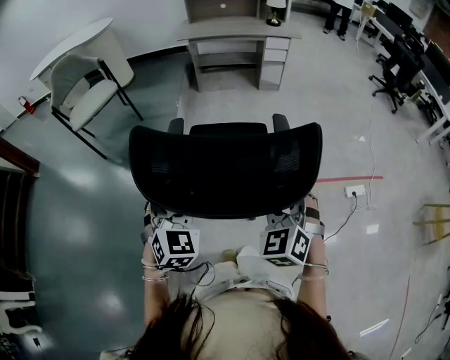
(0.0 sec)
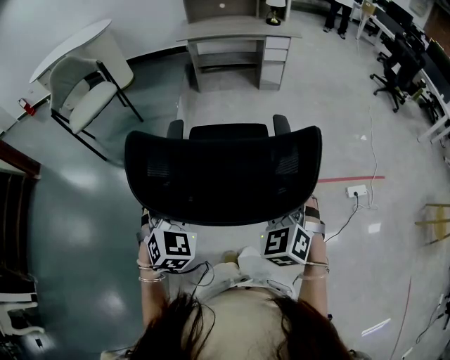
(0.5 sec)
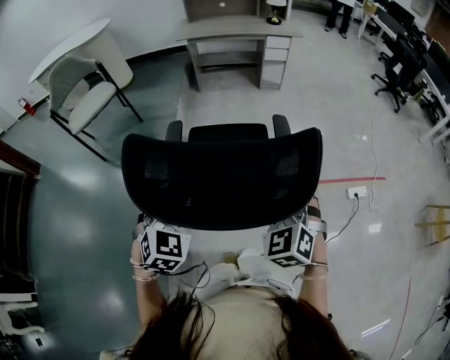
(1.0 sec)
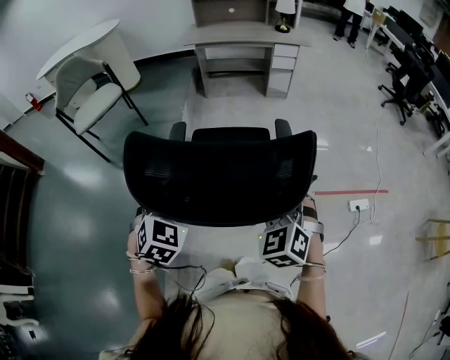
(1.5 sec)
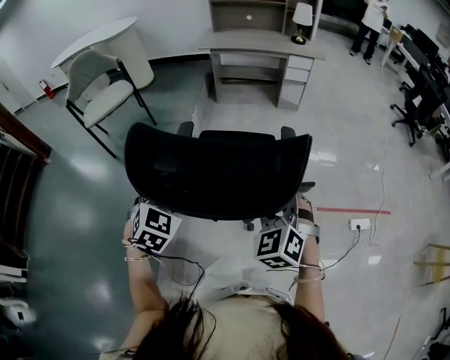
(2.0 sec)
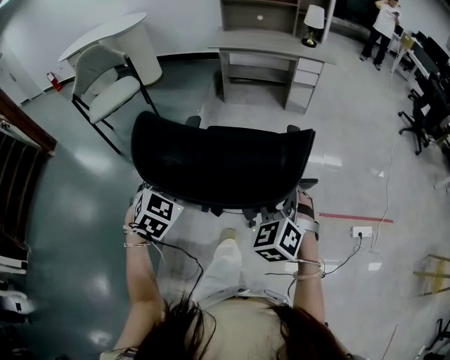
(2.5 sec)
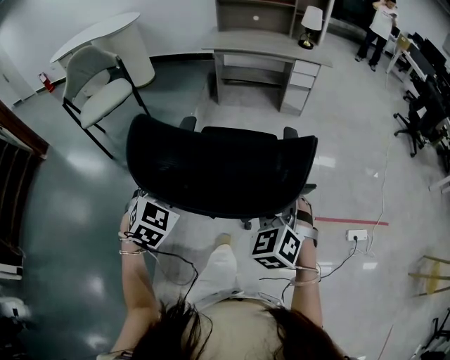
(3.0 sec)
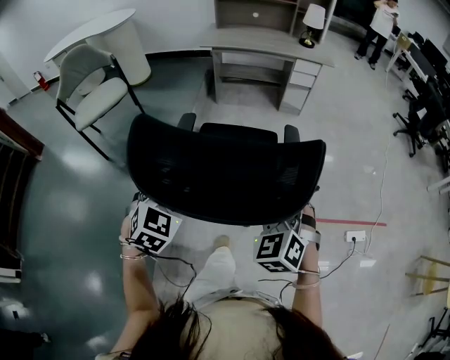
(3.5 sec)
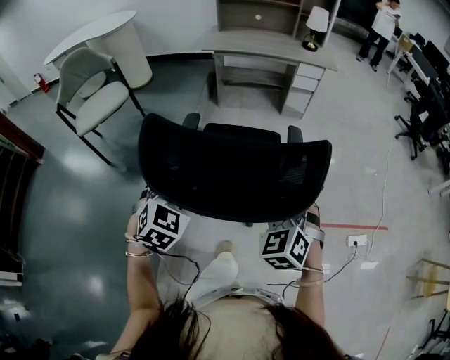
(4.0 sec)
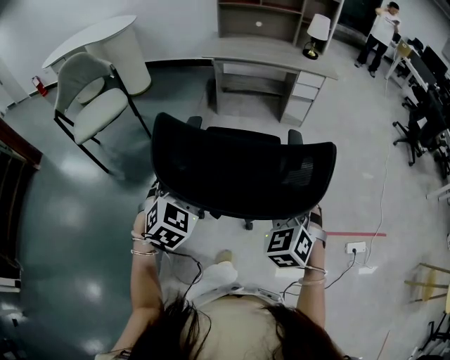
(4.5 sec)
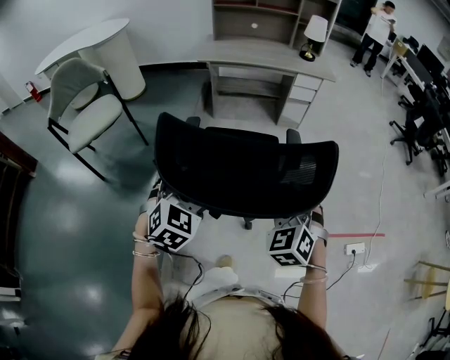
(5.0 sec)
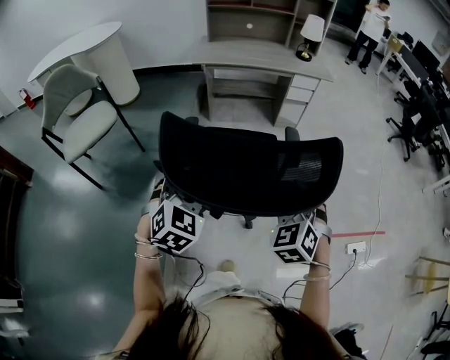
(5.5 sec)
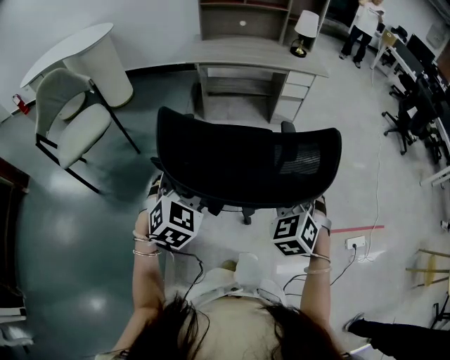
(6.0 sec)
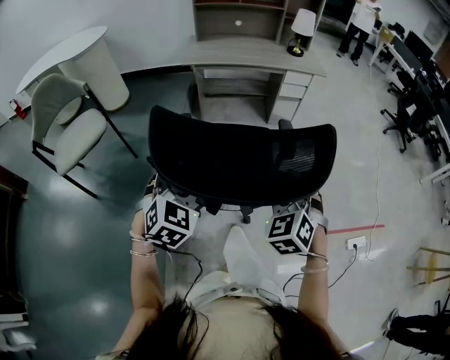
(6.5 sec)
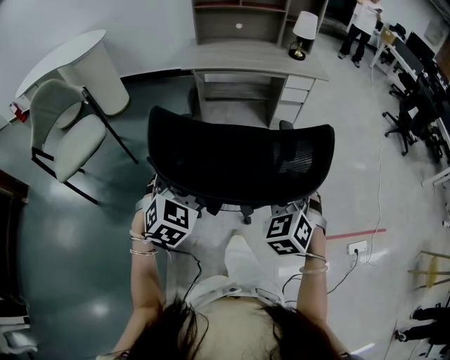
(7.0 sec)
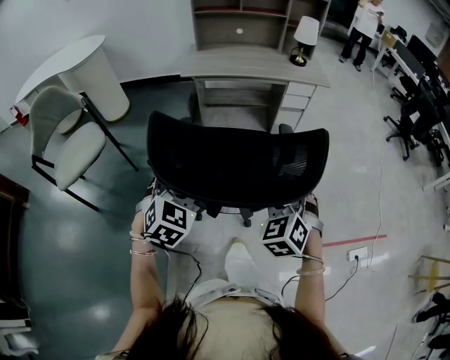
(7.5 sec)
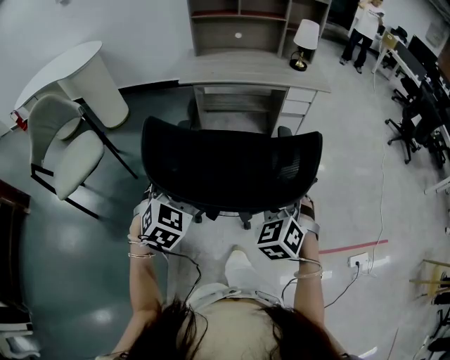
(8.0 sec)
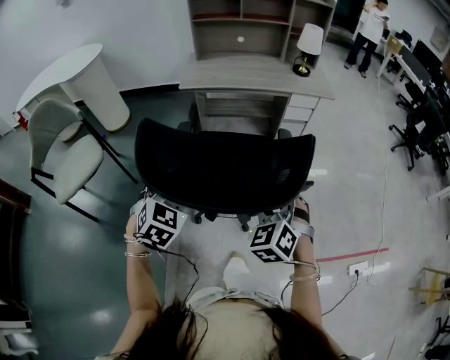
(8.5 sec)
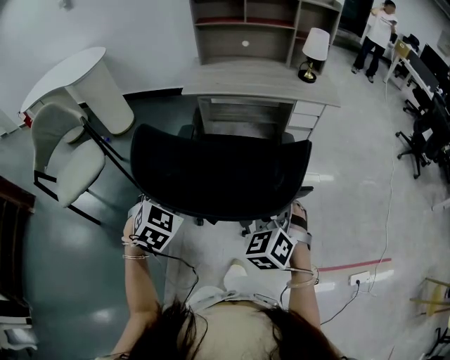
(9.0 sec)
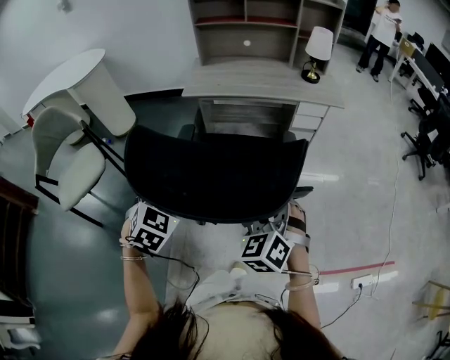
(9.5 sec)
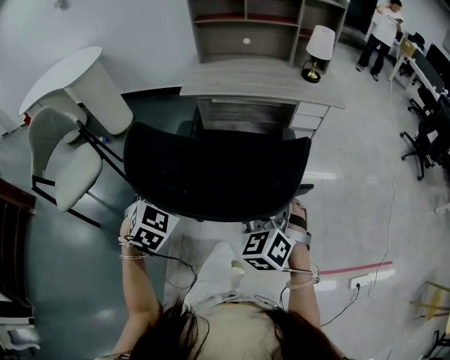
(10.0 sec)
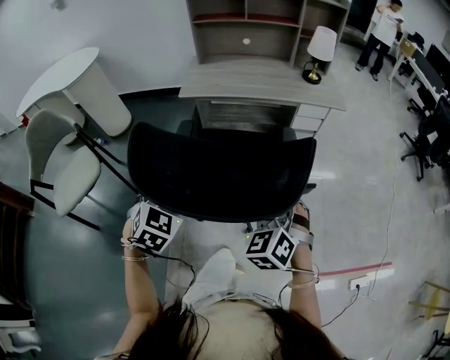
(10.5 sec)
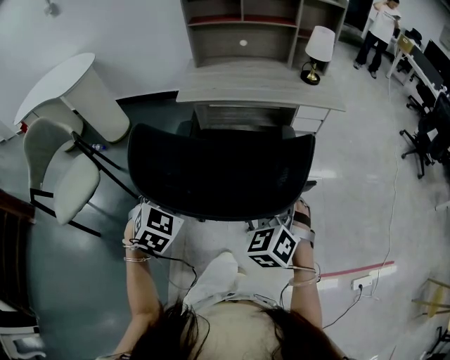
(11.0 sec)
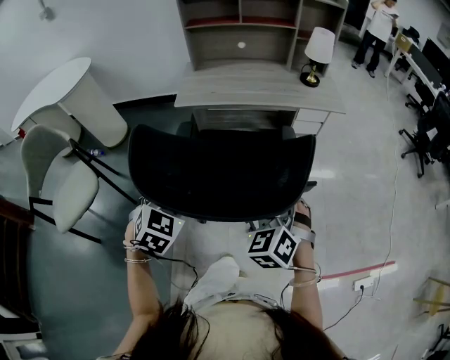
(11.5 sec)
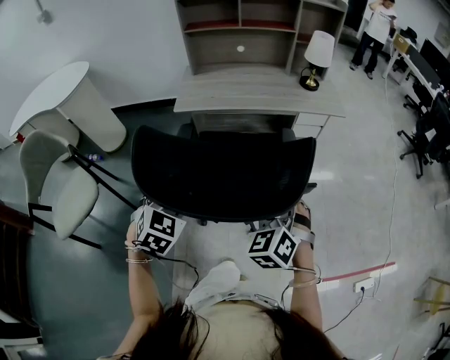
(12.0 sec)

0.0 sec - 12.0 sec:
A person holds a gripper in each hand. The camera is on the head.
0.0 sec - 2.0 sec: Both grippers travel together forward, roughly 10 cm.
2.0 sec - 4.0 sec: Both grippers travel together forward, roughly 15 cm.
4.0 sec - 6.0 sec: Both grippers move forward, approximately 15 cm.
6.0 sec - 8.0 sec: The two grippers go some 15 cm forward.
8.0 sec - 10.0 sec: The two grippers go roughly 10 cm forward.
10.0 sec - 12.0 sec: The grippers both shift forward by roughly 10 cm.

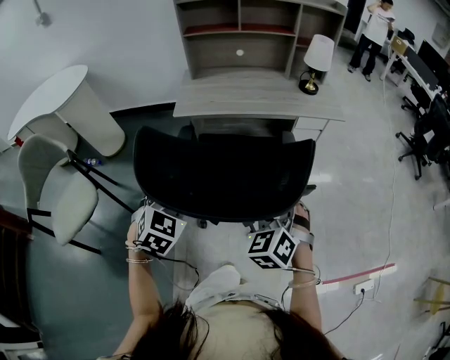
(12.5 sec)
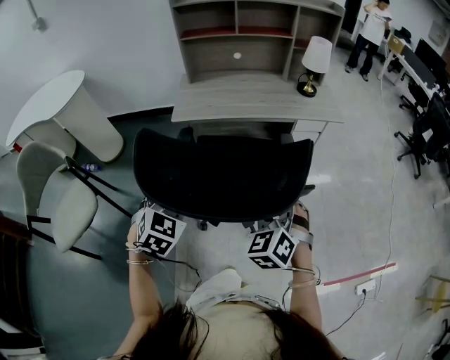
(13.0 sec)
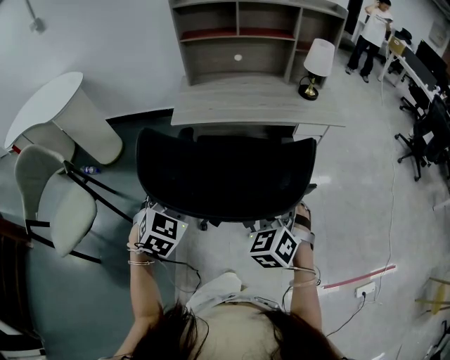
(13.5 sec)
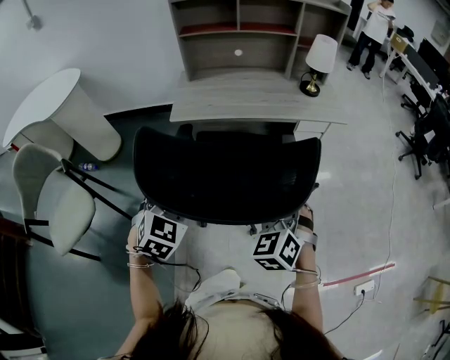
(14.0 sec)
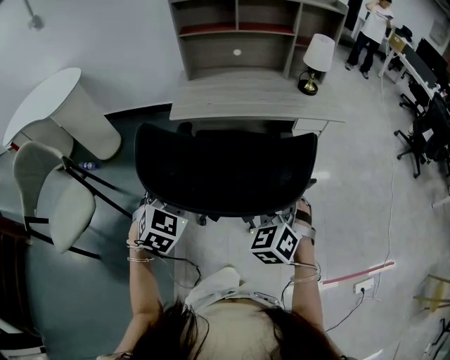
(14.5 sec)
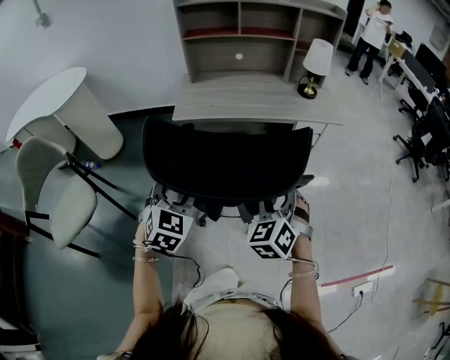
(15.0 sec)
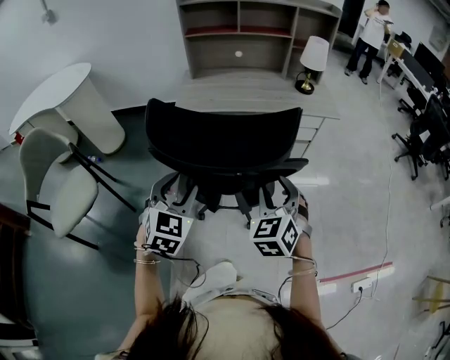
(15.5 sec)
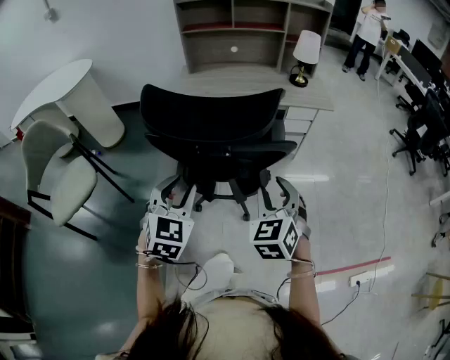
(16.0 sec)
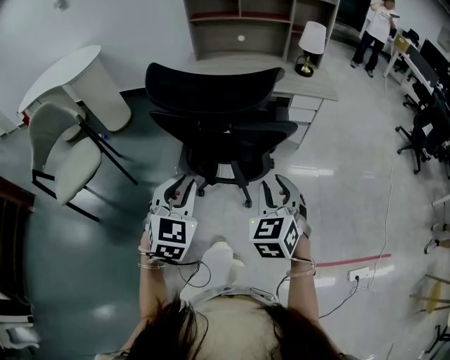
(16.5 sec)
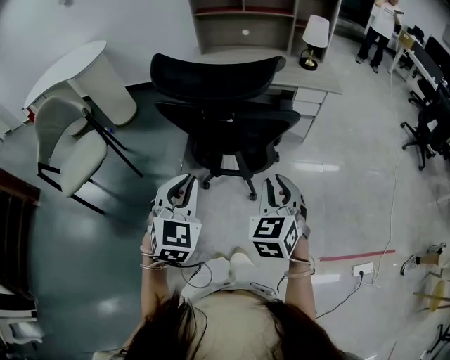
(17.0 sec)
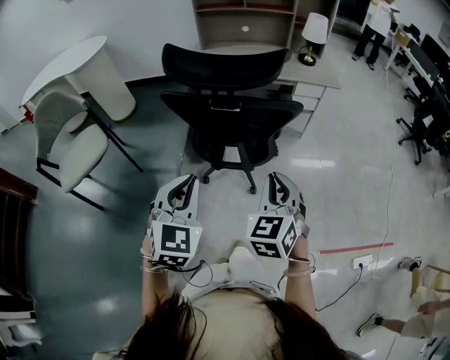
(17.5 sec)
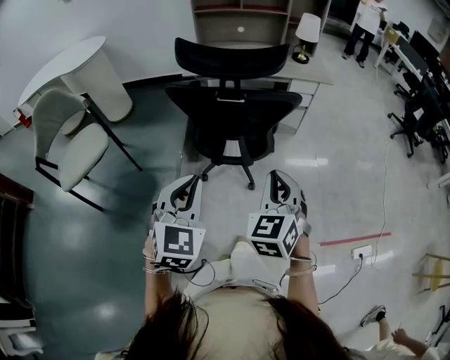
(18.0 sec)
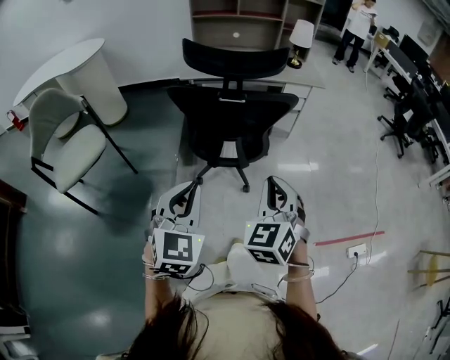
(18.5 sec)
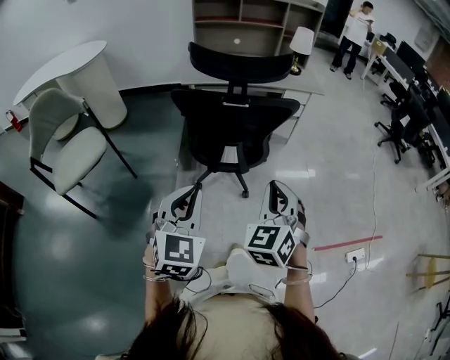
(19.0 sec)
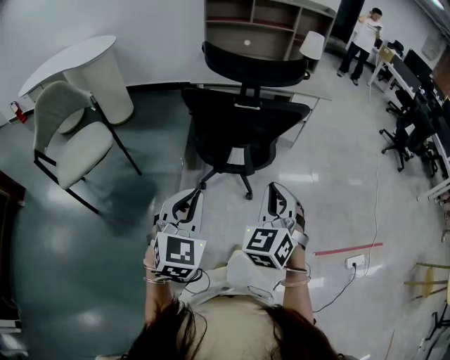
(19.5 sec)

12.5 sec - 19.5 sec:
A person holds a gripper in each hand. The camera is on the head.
12.5 sec - 14.5 sec: There are only small adjustments of the grippers.
14.5 sec - 16.0 sec: The left gripper shifts some 15 cm backward and to the right, while the right gripper heads backward, covering approximately 10 cm.
16.0 sec - 17.5 sec: Both grippers move backward, approximately 15 cm. The left gripper closes. The right gripper closes its fingers.
17.5 sec - 19.5 sec: Both grippers travel together backward and to the left, approximately 10 cm.

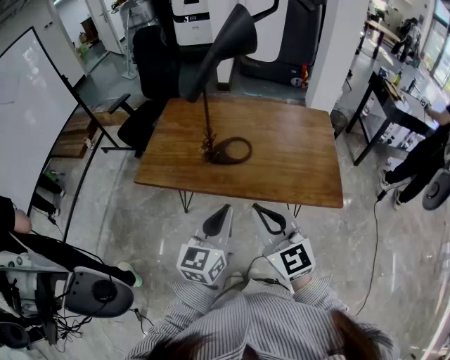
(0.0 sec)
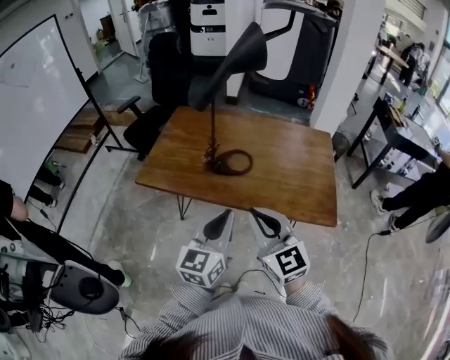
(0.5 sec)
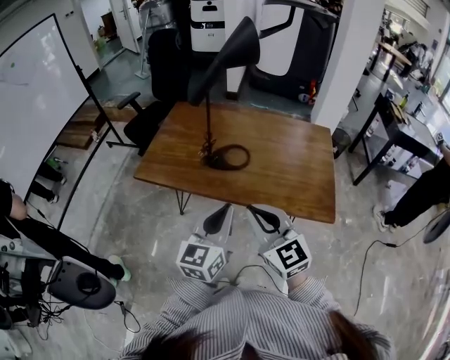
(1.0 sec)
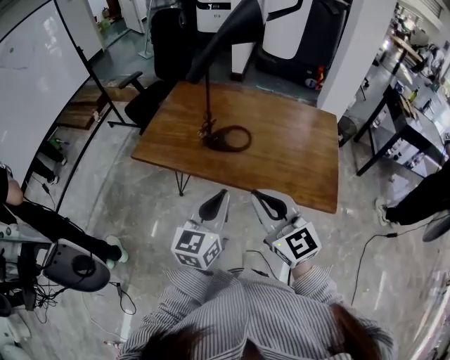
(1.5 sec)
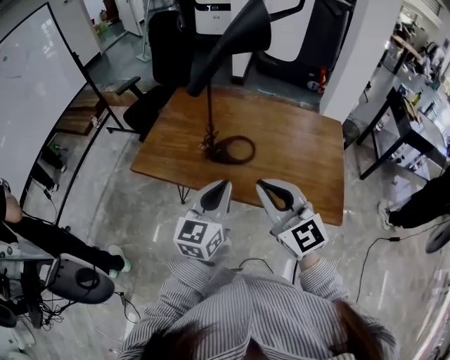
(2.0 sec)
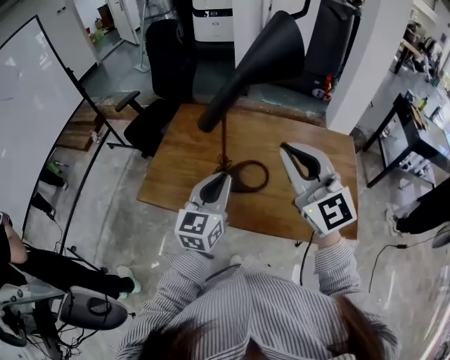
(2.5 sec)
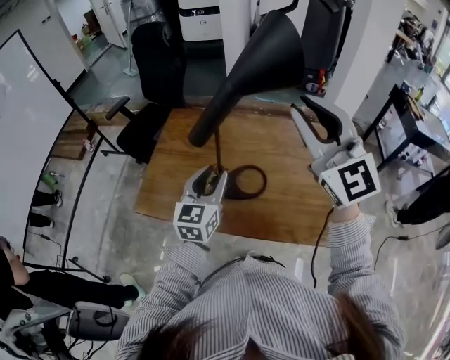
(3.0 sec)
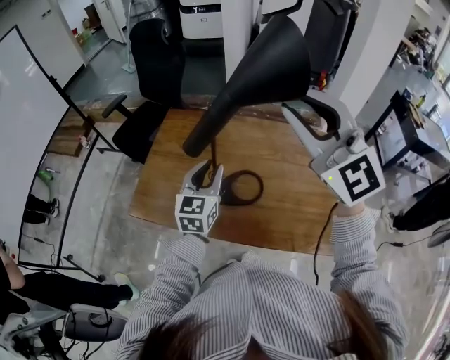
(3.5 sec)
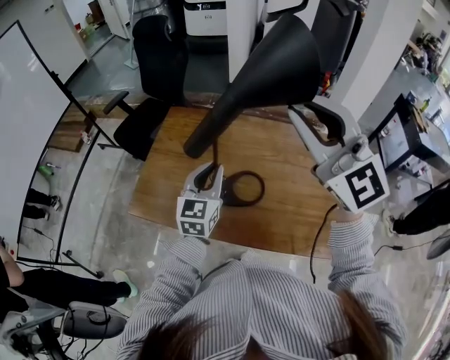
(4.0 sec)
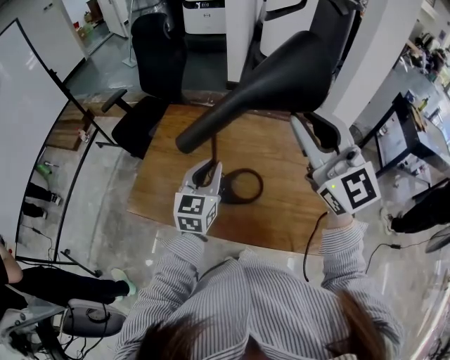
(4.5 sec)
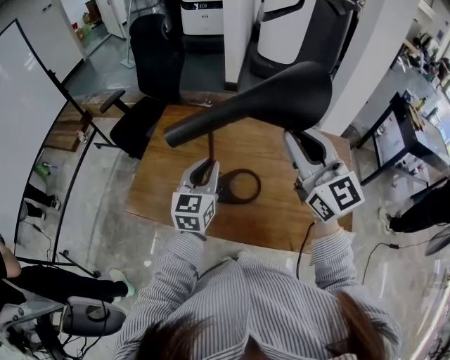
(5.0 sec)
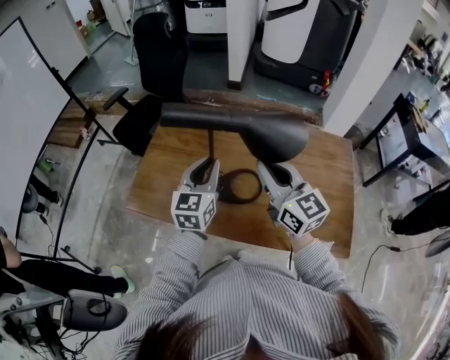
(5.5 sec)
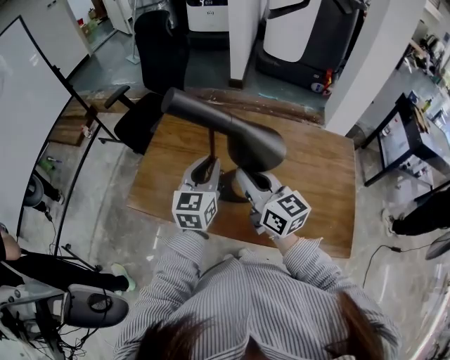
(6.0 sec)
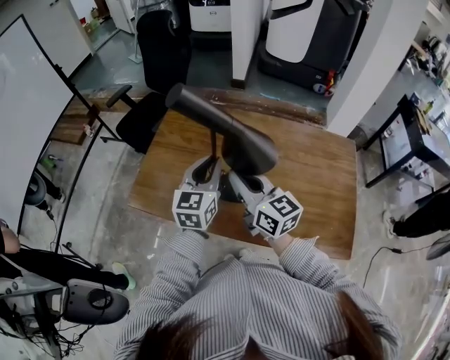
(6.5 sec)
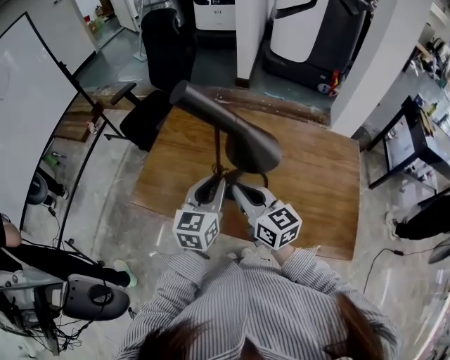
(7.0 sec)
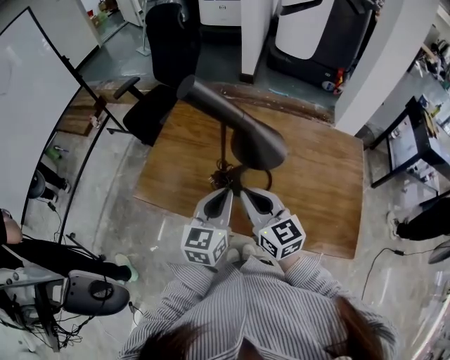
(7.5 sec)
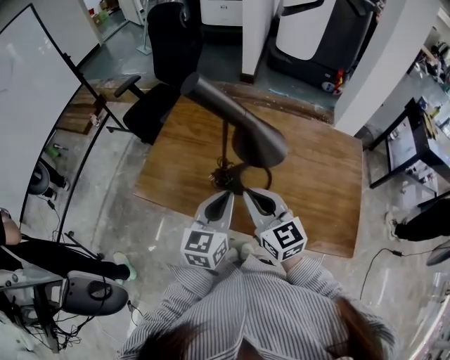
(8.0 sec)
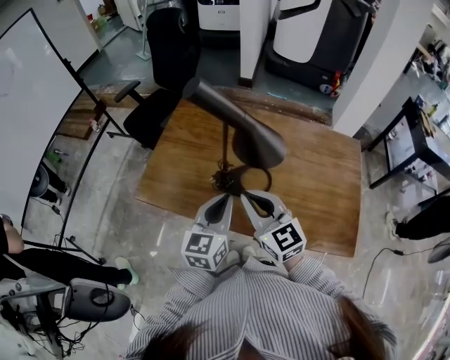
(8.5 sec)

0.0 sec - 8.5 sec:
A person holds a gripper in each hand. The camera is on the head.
0.0 sec - 2.0 sec: The grippers both shift forward by roughly 10 cm.
2.0 sec - 4.0 sec: The left gripper is displaced forward by about 25 cm, and opens and closes again, while the right gripper moves forward and upward, some 30 cm, and turns by roughly 20 degrees.
4.0 sec - 6.5 sec: The right gripper goes roughly 25 cm downward, and twists about 50 degrees clockwise, seen from behind.
6.5 sec - 8.5 sec: The right gripper heads backward, covering roughly 5 cm, and rotates some 20 degrees. The left gripper is displaced backward by approximately 10 cm.
